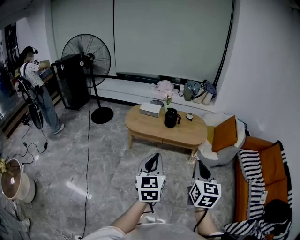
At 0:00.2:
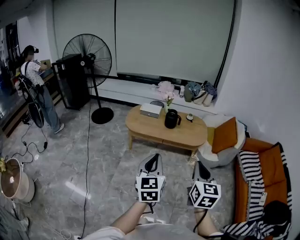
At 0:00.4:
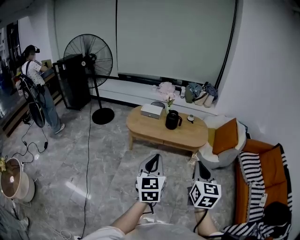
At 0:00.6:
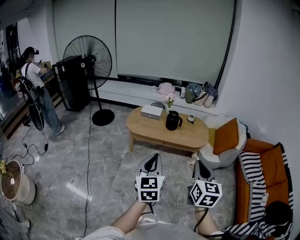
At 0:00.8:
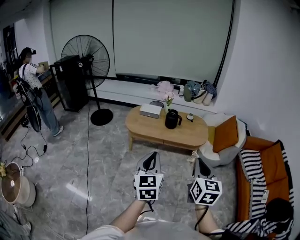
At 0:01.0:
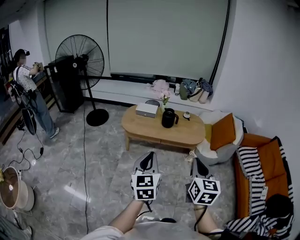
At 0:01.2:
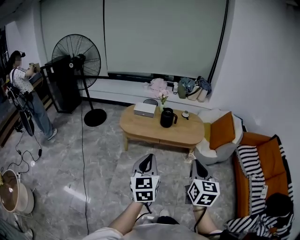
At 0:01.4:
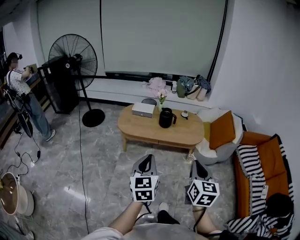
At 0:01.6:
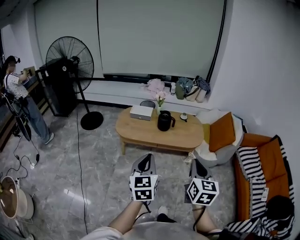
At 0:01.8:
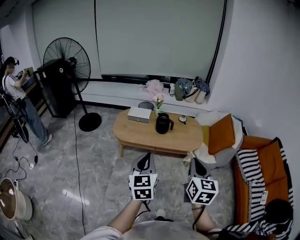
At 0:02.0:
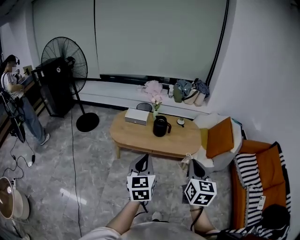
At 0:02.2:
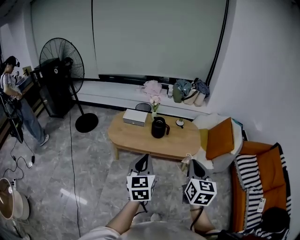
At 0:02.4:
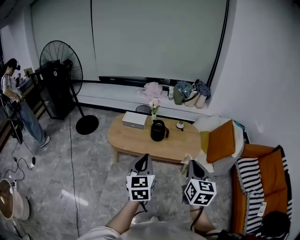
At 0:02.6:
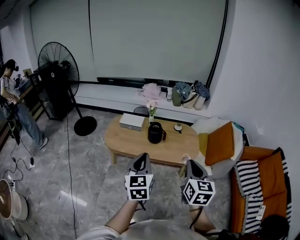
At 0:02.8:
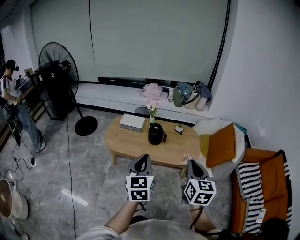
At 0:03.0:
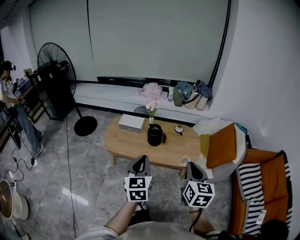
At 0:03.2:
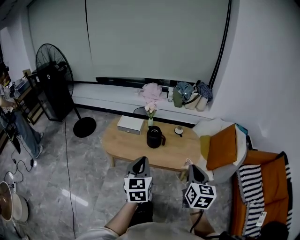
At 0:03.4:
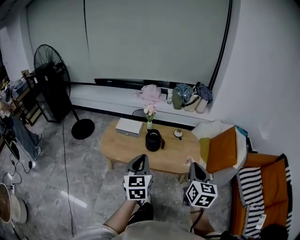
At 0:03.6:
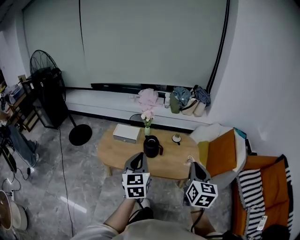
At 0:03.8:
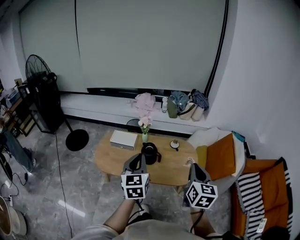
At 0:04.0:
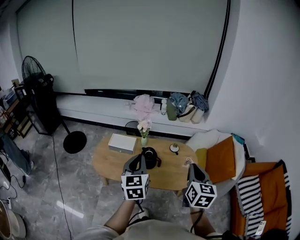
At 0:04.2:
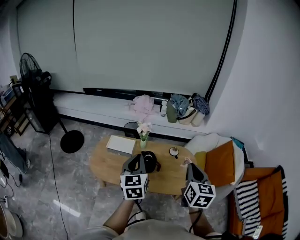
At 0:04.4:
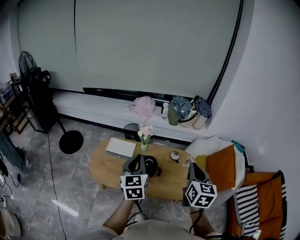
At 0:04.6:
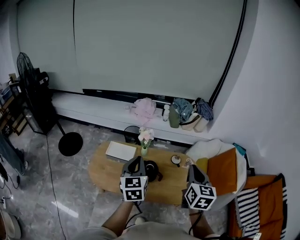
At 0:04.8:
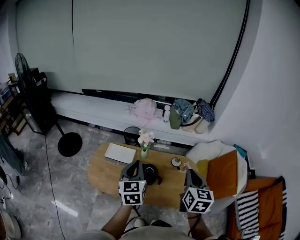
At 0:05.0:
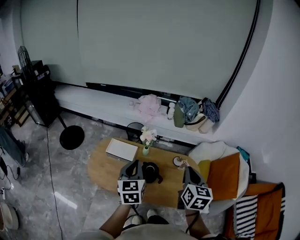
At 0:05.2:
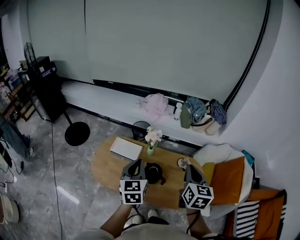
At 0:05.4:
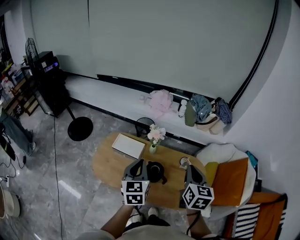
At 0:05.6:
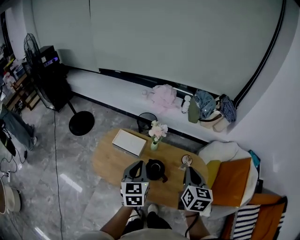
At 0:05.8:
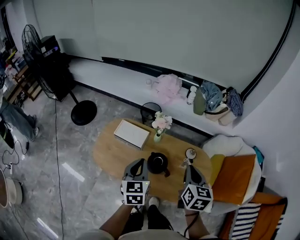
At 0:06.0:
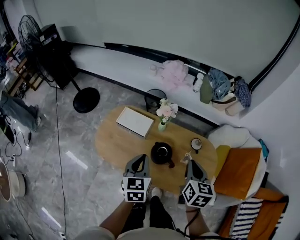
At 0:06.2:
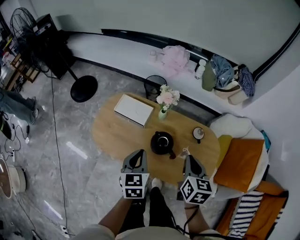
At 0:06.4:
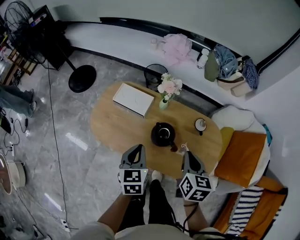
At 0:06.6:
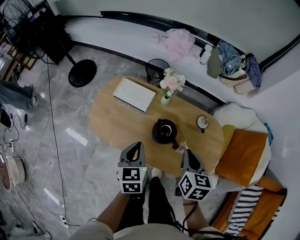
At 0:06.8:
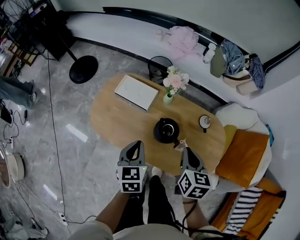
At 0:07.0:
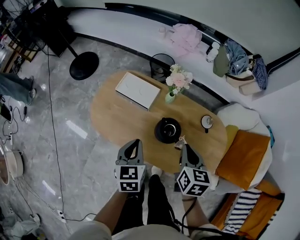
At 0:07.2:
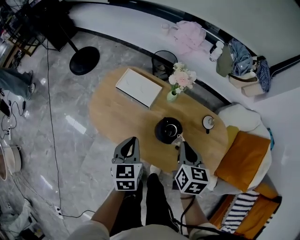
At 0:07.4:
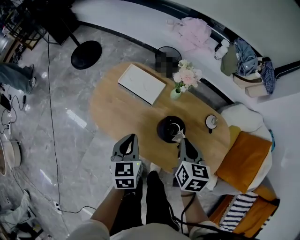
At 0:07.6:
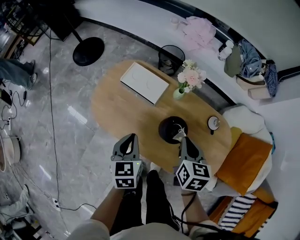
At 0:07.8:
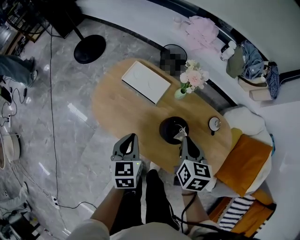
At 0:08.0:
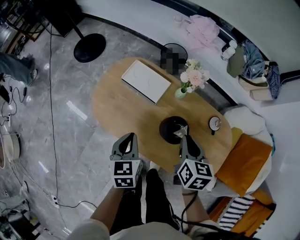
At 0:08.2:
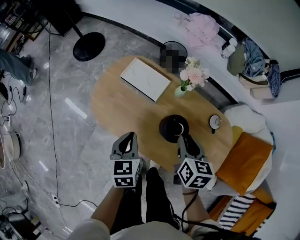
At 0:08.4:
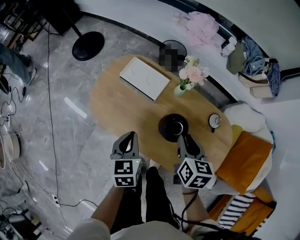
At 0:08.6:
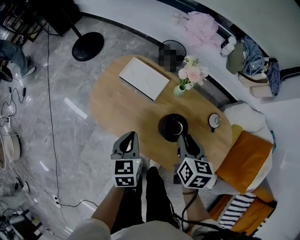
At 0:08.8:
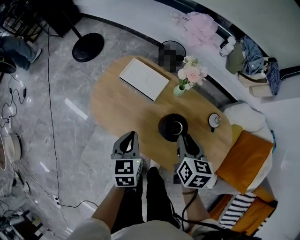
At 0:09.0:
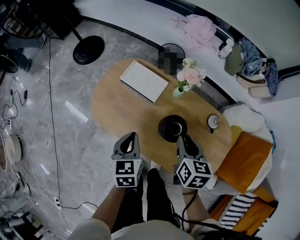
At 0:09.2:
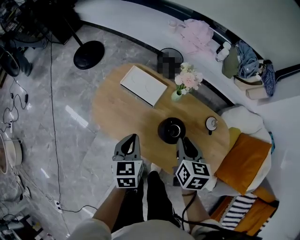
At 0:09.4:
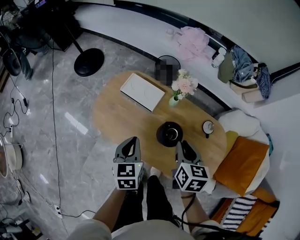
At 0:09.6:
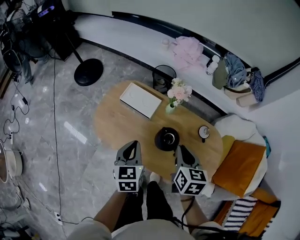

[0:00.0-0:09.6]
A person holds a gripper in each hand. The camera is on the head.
0:00.0 to 0:01.6: The two grippers go approximately 10 cm forward.
0:01.6 to 0:03.2: The right gripper shifts some 20 cm forward and to the right. Meanwhile the left gripper goes about 20 cm forward.
0:03.2 to 0:04.8: The grippers both shift forward by some 30 cm.
0:04.8 to 0:06.4: Both grippers move downward, roughly 15 cm. The right gripper rotates approximately 20 degrees. The left gripper changes its angle by some 20 degrees.
0:06.4 to 0:08.0: The right gripper moves forward, downward and to the left, about 10 cm. The left gripper is displaced to the left and downward by some 10 cm.
0:08.0 to 0:09.6: The two grippers go about 5 cm upward.

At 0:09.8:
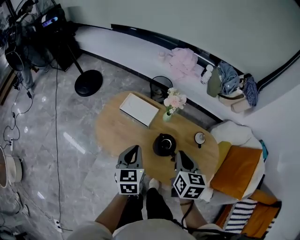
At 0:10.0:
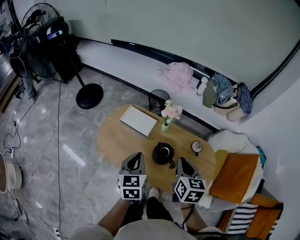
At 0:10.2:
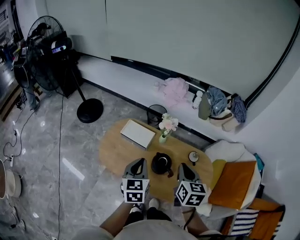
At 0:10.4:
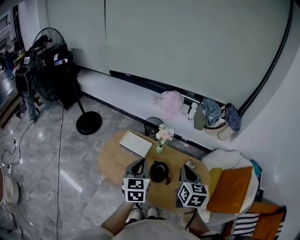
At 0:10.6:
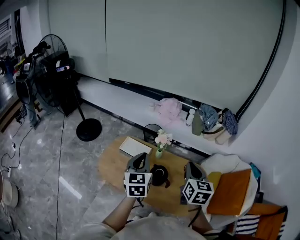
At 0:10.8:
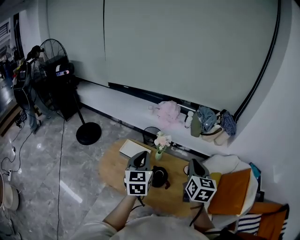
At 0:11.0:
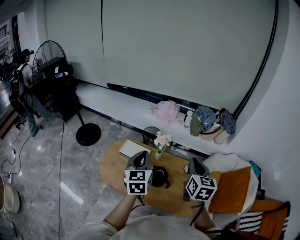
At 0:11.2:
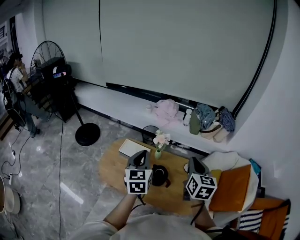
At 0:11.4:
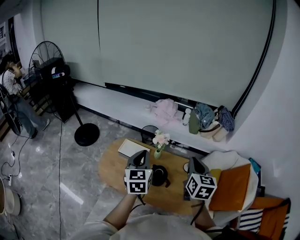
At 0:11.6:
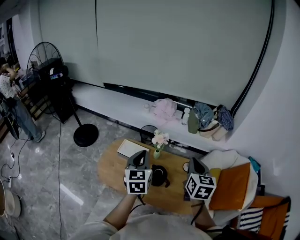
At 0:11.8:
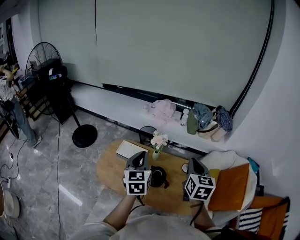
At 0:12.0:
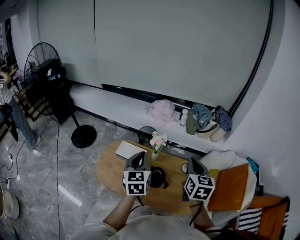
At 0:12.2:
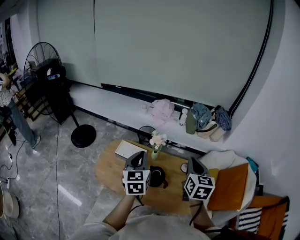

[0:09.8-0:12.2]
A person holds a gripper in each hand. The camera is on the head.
0:09.8 to 0:11.0: The right gripper is displaced upward and to the right by roughly 15 cm, and rotates about 20 degrees. Meanwhile the left gripper shifts roughly 15 cm upward.
0:11.0 to 0:12.2: There are only small adjustments of the grippers.

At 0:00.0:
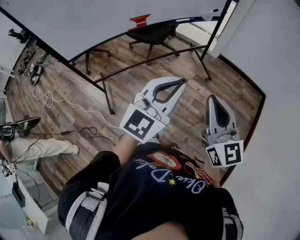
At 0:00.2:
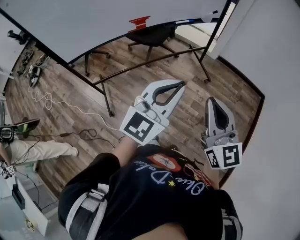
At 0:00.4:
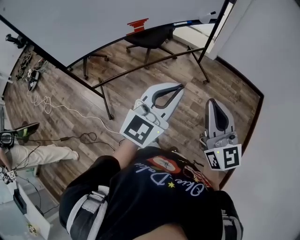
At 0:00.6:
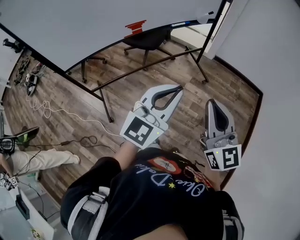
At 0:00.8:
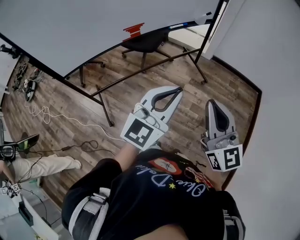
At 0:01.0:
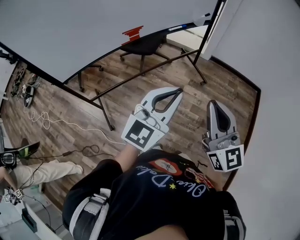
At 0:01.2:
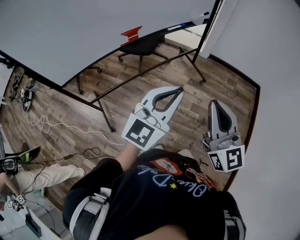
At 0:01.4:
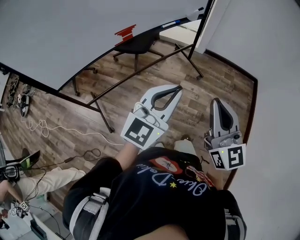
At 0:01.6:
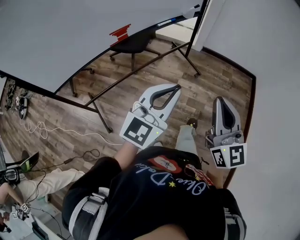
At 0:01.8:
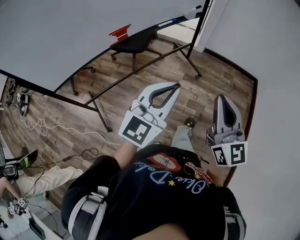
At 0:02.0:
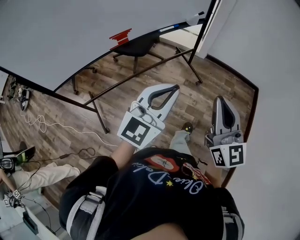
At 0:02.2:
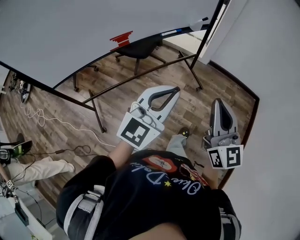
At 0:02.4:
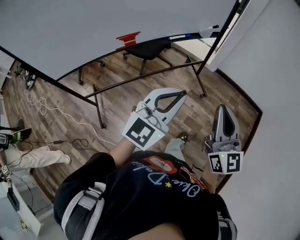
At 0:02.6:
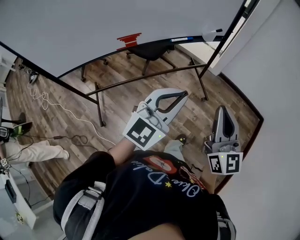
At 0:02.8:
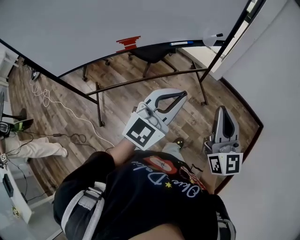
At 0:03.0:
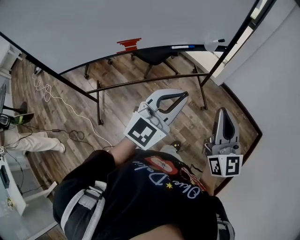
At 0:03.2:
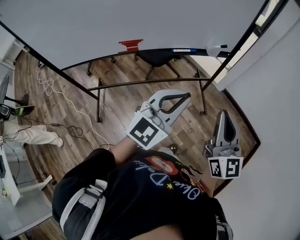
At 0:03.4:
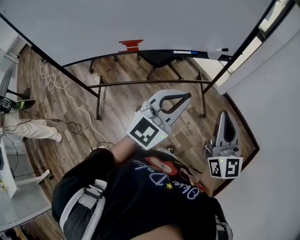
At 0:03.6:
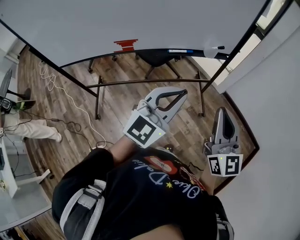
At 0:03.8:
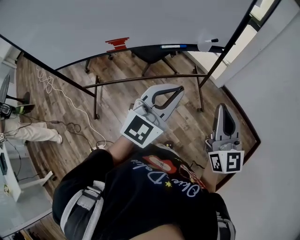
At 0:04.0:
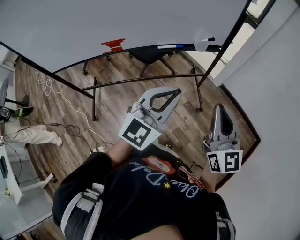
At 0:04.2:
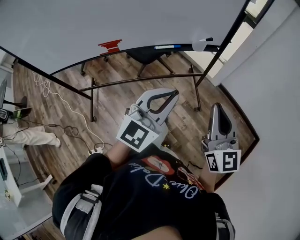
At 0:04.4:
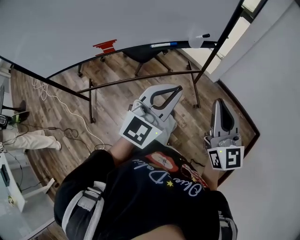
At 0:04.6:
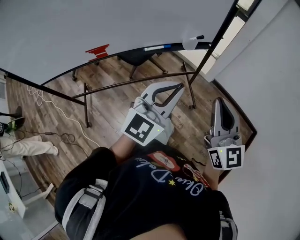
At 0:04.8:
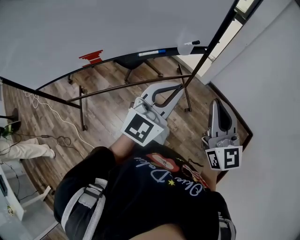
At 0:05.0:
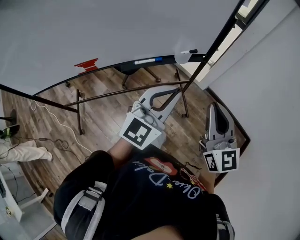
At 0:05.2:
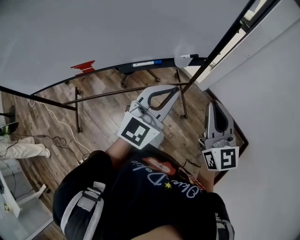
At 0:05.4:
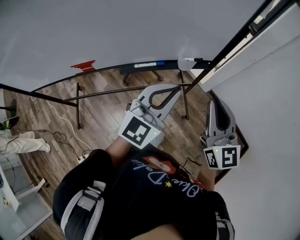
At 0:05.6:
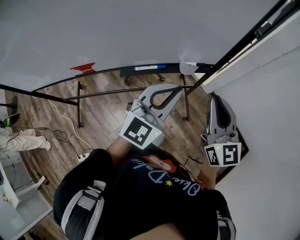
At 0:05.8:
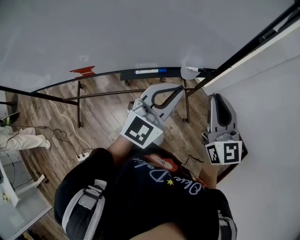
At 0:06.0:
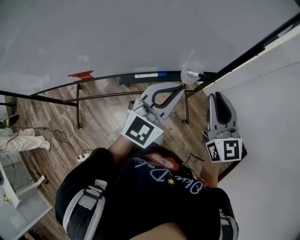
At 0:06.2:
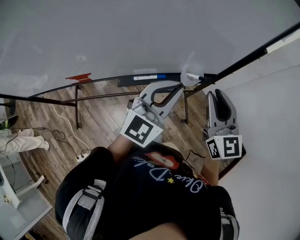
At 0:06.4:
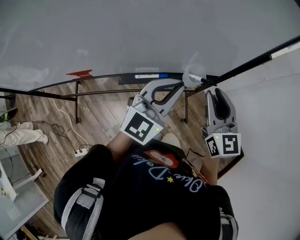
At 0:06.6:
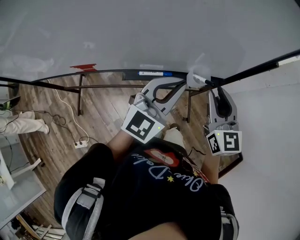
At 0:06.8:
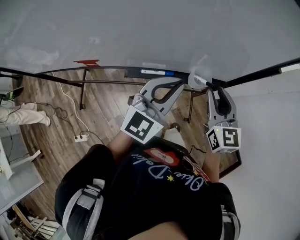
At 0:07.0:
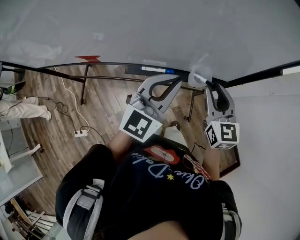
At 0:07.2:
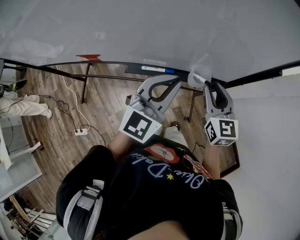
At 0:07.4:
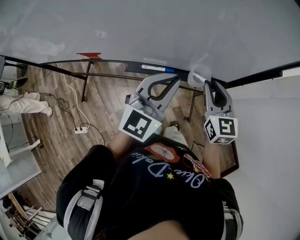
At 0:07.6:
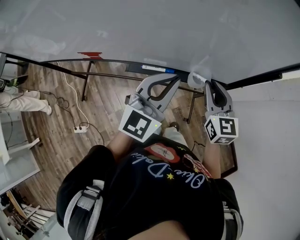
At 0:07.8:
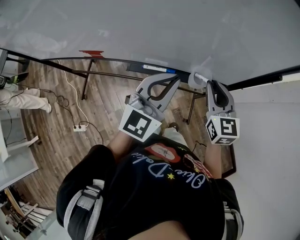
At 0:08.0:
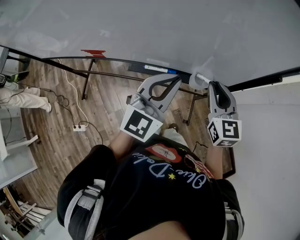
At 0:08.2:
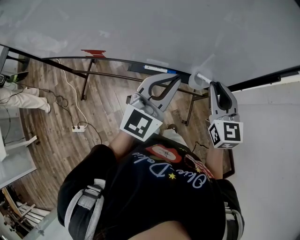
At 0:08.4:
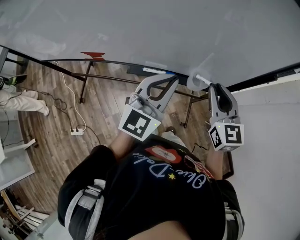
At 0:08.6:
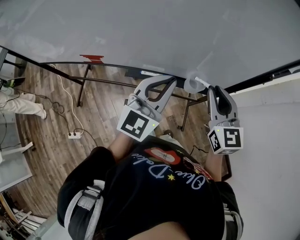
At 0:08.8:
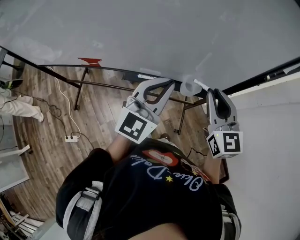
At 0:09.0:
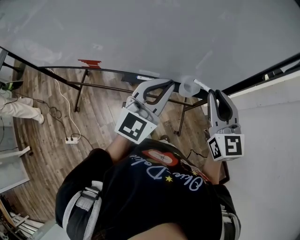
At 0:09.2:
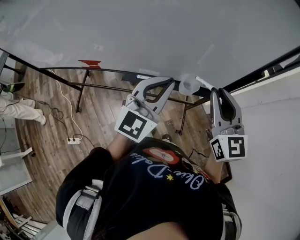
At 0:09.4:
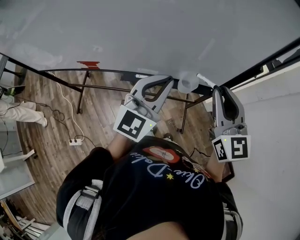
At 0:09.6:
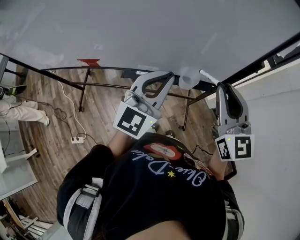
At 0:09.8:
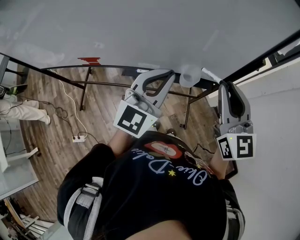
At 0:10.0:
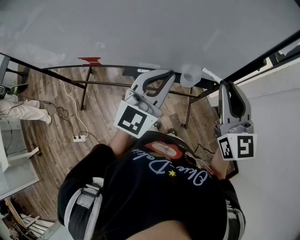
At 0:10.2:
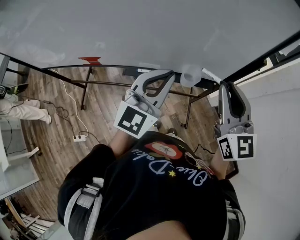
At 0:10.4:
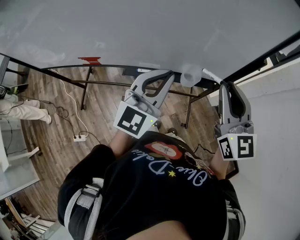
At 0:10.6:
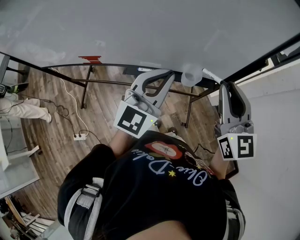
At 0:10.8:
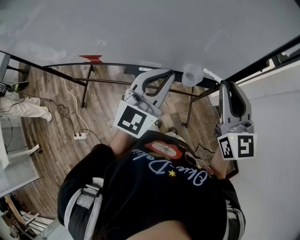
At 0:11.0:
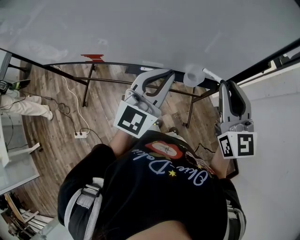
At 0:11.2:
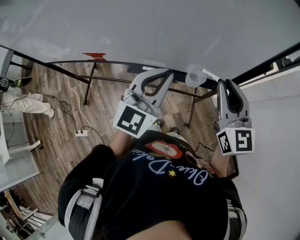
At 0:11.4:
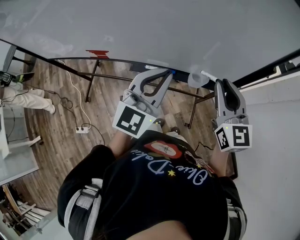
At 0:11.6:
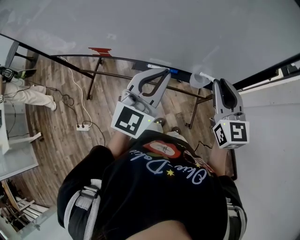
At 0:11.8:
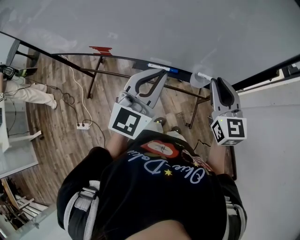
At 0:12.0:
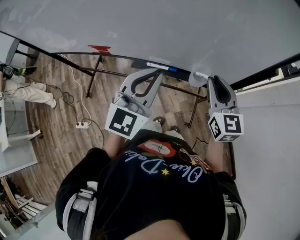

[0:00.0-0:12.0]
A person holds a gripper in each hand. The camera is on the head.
0:00.0 to 0:01.6: The left gripper goes about 5 cm forward.
0:01.6 to 0:03.0: The two grippers go roughly 20 cm forward and to the right.
0:03.0 to 0:04.4: Both grippers move forward and to the right, about 10 cm.
0:04.4 to 0:06.0: The two grippers go some 25 cm forward.
0:06.0 to 0:07.6: The right gripper goes some 10 cm forward and downward.
0:07.6 to 0:09.0: The right gripper is displaced upward by about 10 cm.
0:09.0 to 0:10.4: There are only small adjustments of the grippers.
0:10.4 to 0:12.0: The left gripper goes about 5 cm to the left, while the right gripper shifts some 10 cm downward.
